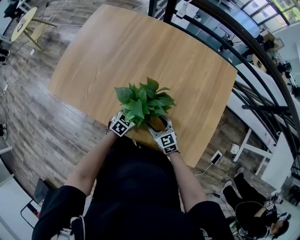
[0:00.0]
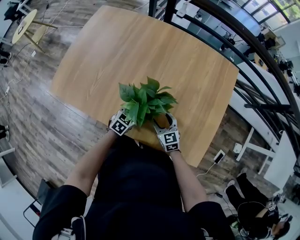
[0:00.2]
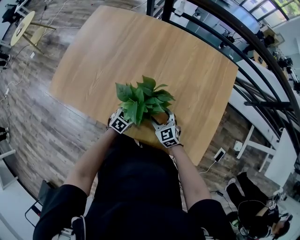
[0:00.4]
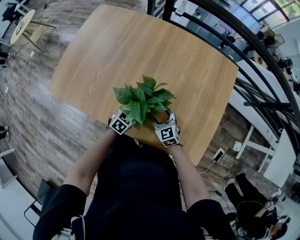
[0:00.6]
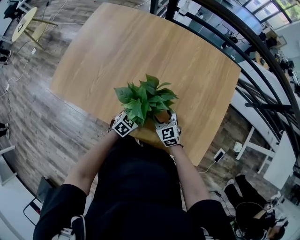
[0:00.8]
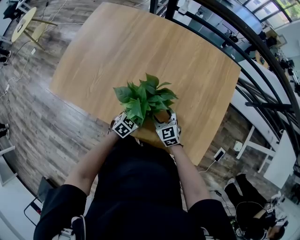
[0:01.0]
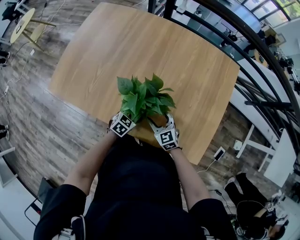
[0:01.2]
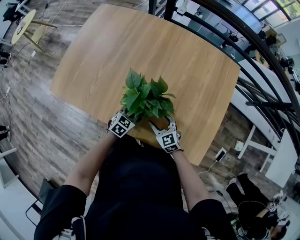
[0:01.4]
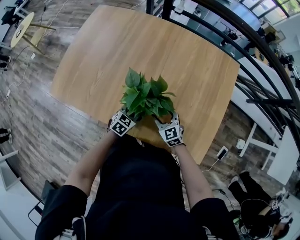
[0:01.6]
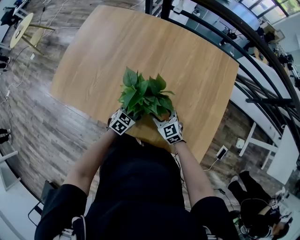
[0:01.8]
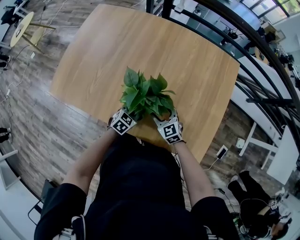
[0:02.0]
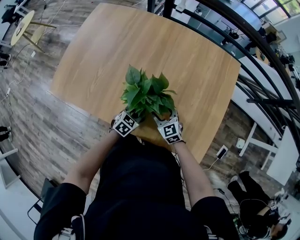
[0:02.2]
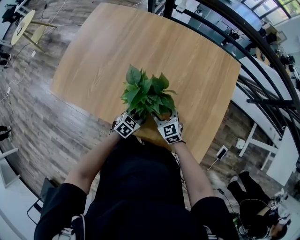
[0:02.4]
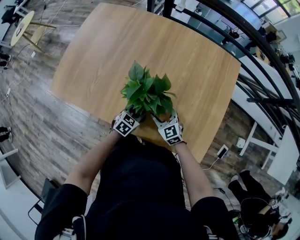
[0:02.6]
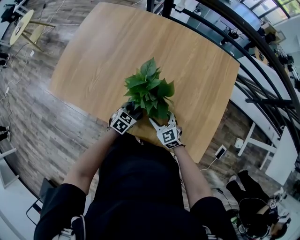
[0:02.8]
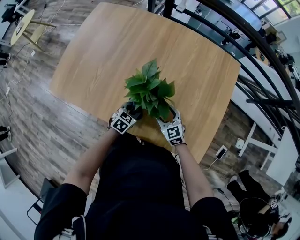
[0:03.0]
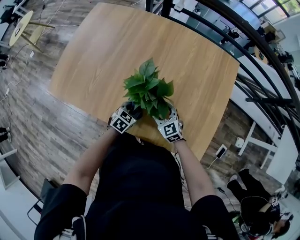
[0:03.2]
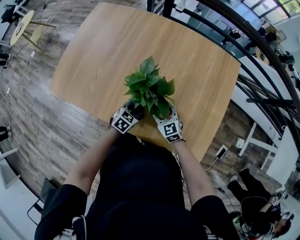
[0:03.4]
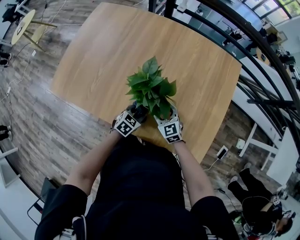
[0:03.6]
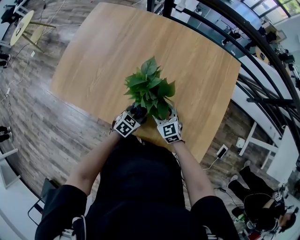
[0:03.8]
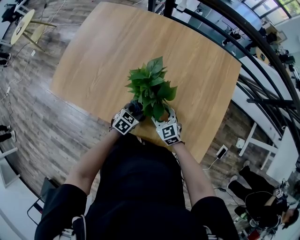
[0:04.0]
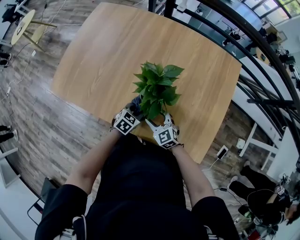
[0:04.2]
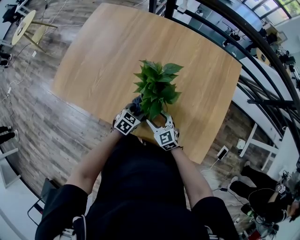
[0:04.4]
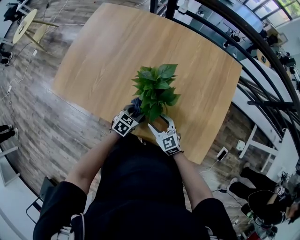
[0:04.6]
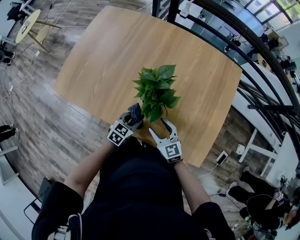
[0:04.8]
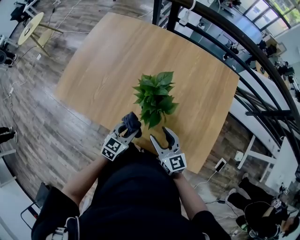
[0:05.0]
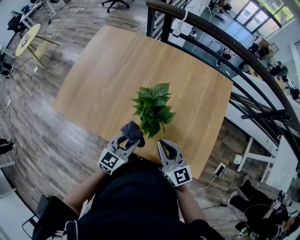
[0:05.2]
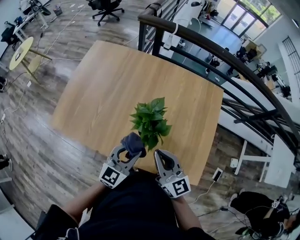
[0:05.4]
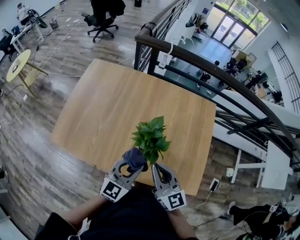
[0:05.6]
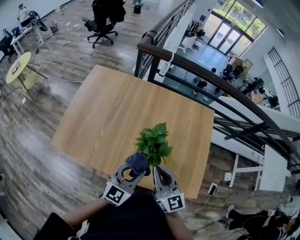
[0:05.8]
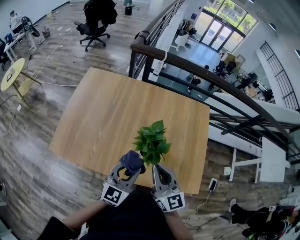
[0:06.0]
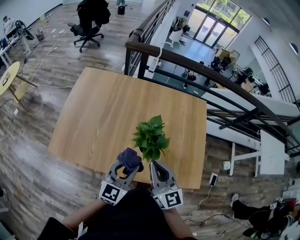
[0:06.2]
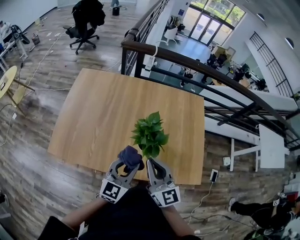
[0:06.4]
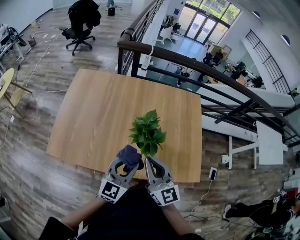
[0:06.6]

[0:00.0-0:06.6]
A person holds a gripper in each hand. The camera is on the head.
0:00.0 to 0:03.2: The grippers move only a little.
0:03.2 to 0:05.0: The grippers both shift upward and backward by roughly 10 cm. The right gripper changes its angle by roughly 30 degrees.
0:05.0 to 0:06.6: The right gripper heads upward and to the left, covering about 20 cm, swivels some 30 degrees, and closes up. The left gripper travels upward by roughly 20 cm, and turns by approximately 30 degrees.

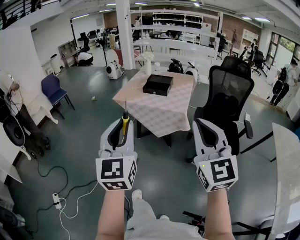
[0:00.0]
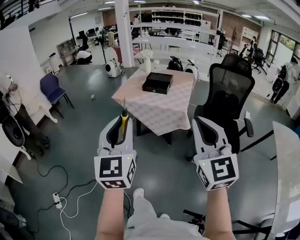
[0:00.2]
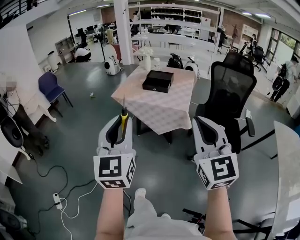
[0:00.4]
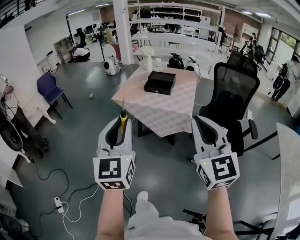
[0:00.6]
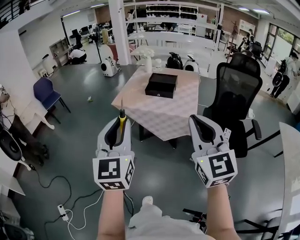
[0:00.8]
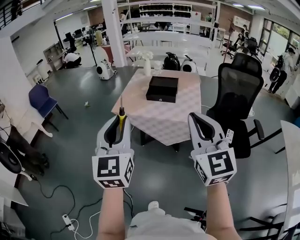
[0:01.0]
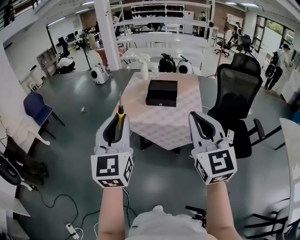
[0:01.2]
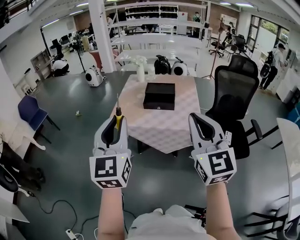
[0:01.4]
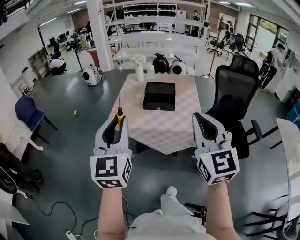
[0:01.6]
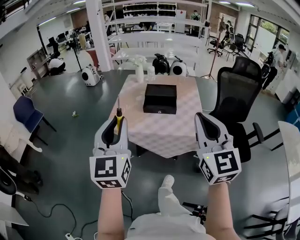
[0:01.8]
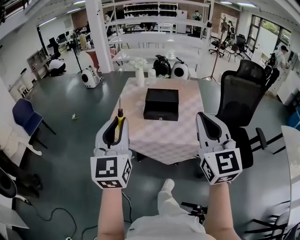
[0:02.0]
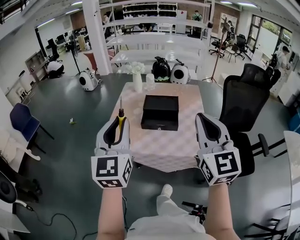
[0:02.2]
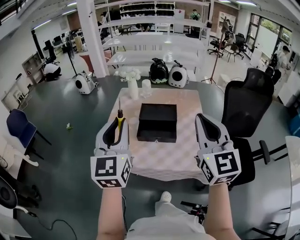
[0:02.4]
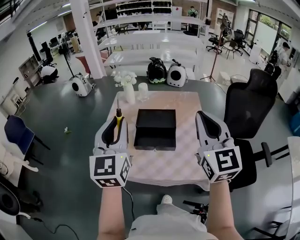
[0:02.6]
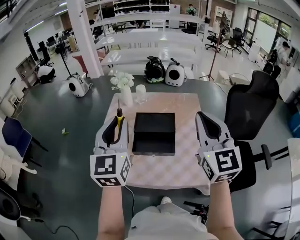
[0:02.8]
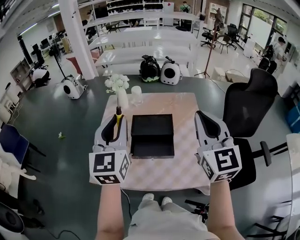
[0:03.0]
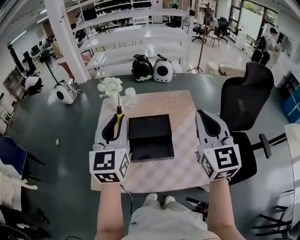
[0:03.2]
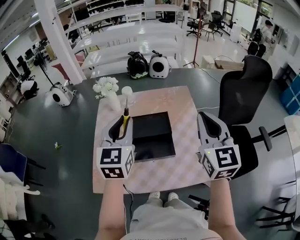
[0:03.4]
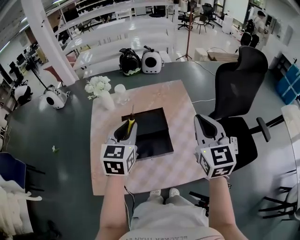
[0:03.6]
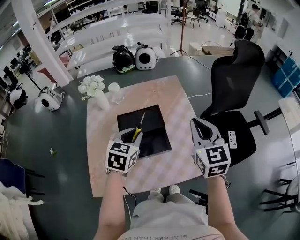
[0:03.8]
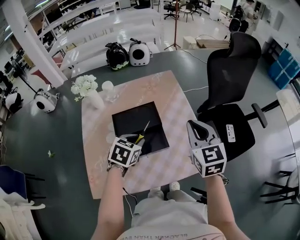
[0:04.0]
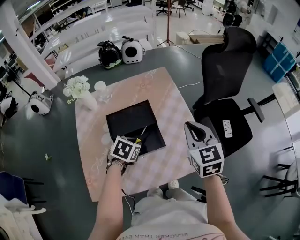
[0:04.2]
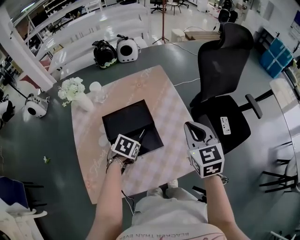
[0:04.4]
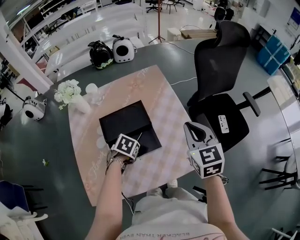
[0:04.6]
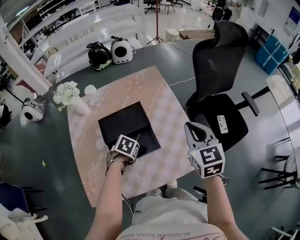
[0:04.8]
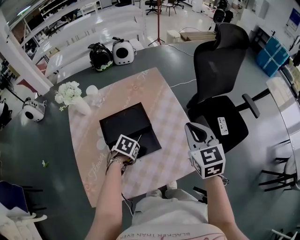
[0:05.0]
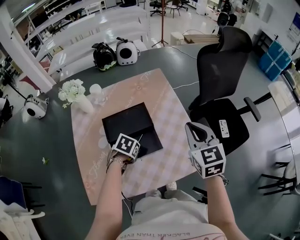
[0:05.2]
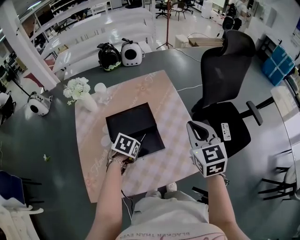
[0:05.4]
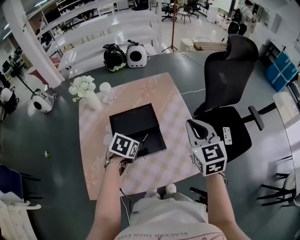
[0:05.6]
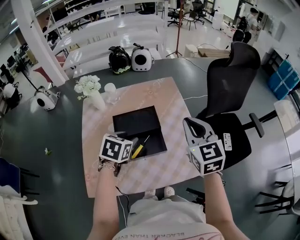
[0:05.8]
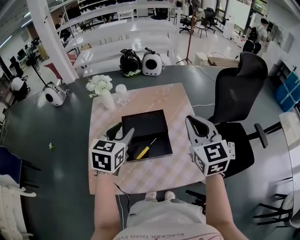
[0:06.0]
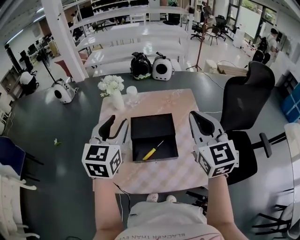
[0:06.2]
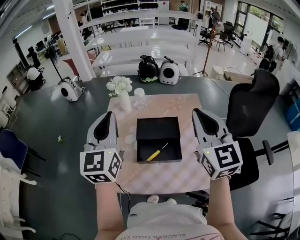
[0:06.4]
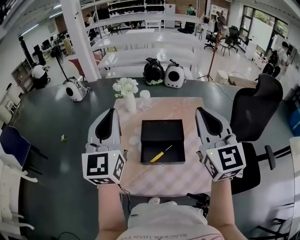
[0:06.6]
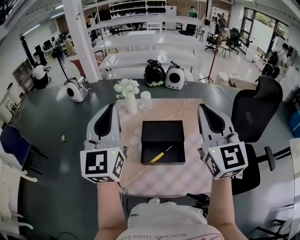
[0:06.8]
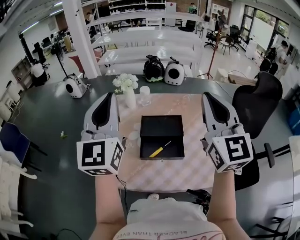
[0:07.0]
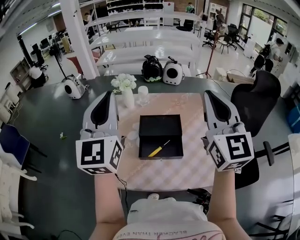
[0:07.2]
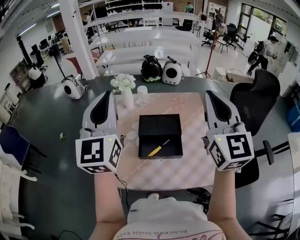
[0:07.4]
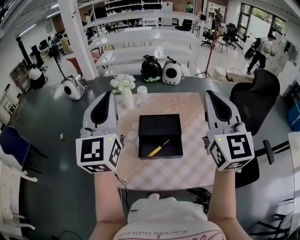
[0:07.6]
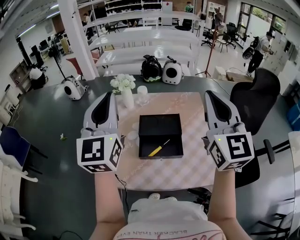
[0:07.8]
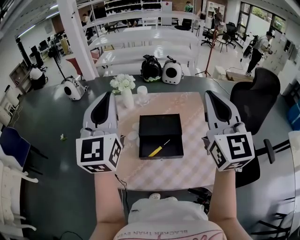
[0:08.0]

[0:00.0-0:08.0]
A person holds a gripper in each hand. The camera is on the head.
0:00.0 to 0:01.6: The two grippers go some 35 cm forward.
0:01.6 to 0:03.2: The pair of grippers is taken forward, approximately 40 cm.
0:03.2 to 0:04.8: The right gripper shifts some 20 cm downward, and rotates some 30 degrees, while the left gripper shifts approximately 40 cm downward, and angles its fingers downward, by roughly 70 degrees.
0:04.8 to 0:06.4: The left gripper travels upward by roughly 40 cm, tilts its fingers about 80 degrees upward, and opens, then closes once more. Meanwhile the right gripper shifts roughly 20 cm upward, and swivels roughly 30 degrees.
0:06.4 to 0:08.0: Both grippers travel together upward, roughly 5 cm.

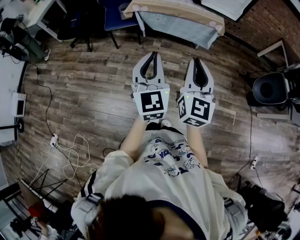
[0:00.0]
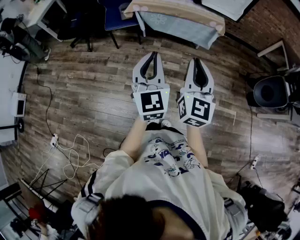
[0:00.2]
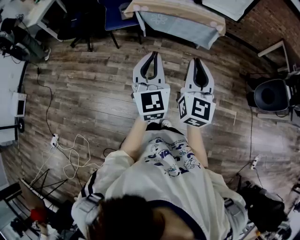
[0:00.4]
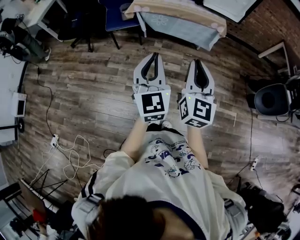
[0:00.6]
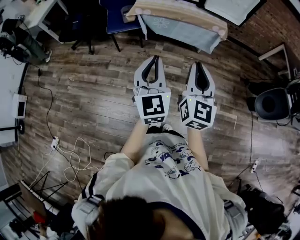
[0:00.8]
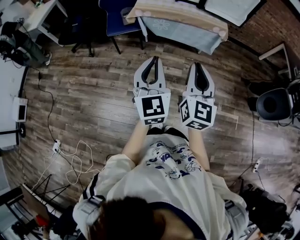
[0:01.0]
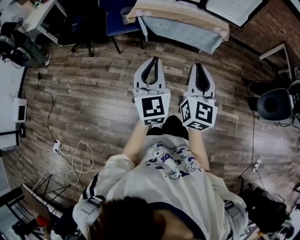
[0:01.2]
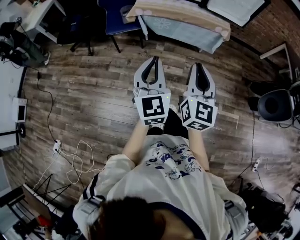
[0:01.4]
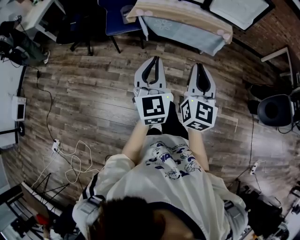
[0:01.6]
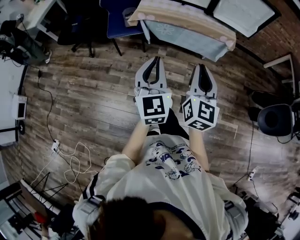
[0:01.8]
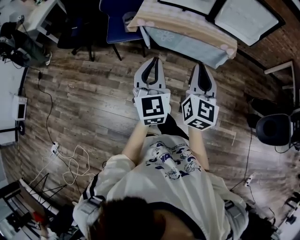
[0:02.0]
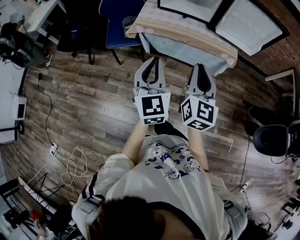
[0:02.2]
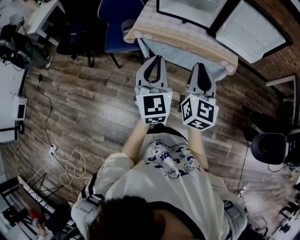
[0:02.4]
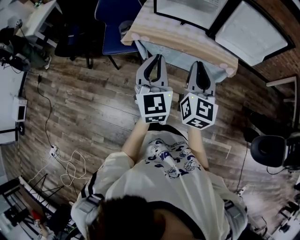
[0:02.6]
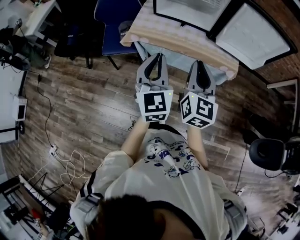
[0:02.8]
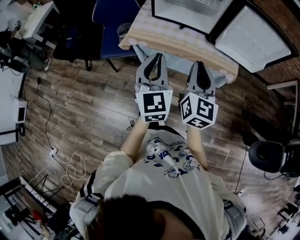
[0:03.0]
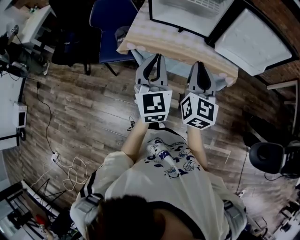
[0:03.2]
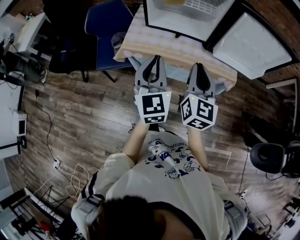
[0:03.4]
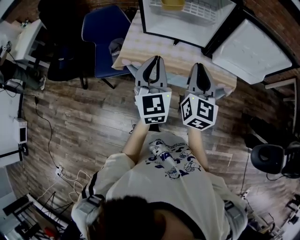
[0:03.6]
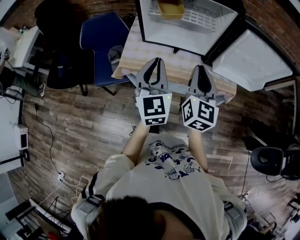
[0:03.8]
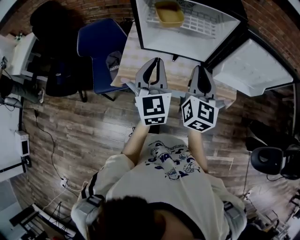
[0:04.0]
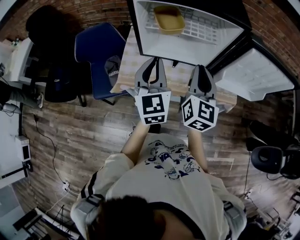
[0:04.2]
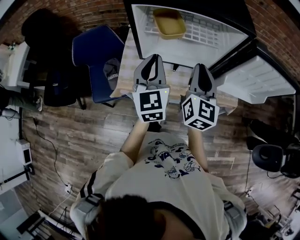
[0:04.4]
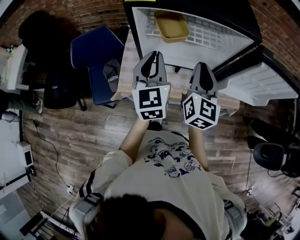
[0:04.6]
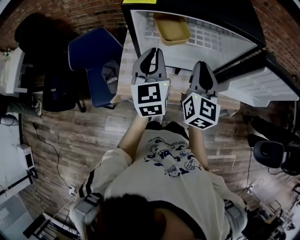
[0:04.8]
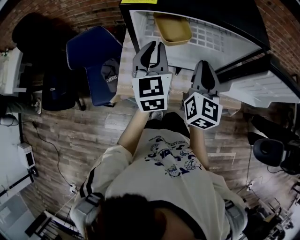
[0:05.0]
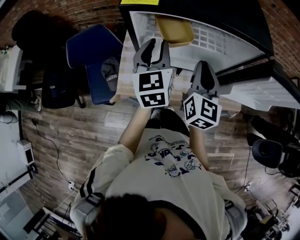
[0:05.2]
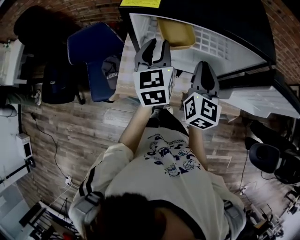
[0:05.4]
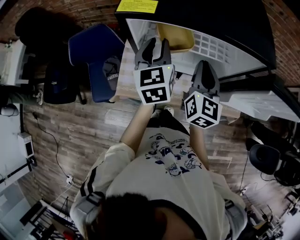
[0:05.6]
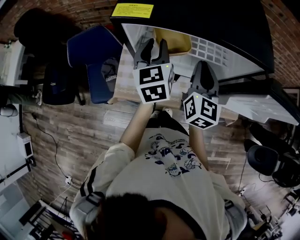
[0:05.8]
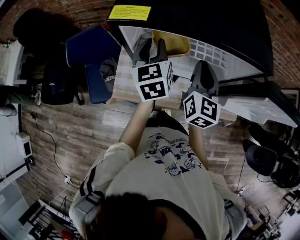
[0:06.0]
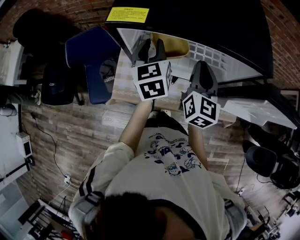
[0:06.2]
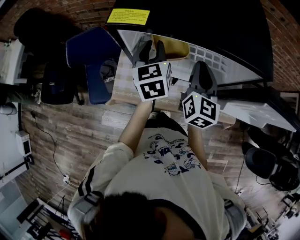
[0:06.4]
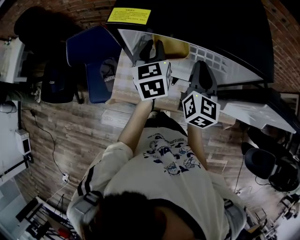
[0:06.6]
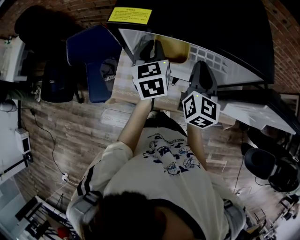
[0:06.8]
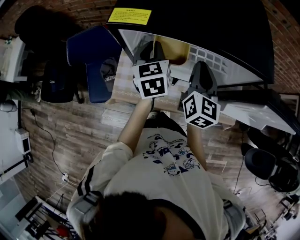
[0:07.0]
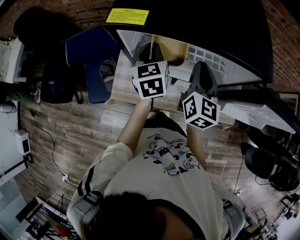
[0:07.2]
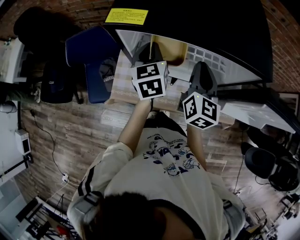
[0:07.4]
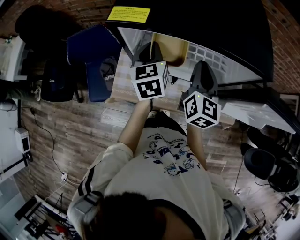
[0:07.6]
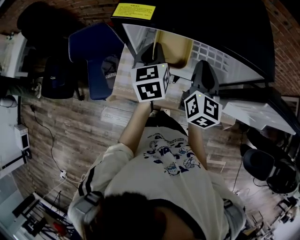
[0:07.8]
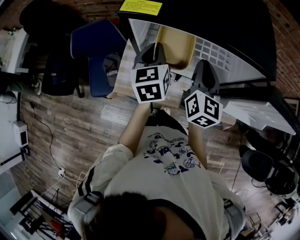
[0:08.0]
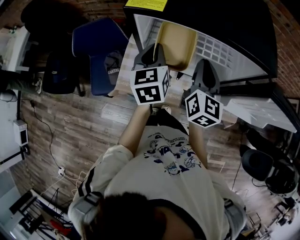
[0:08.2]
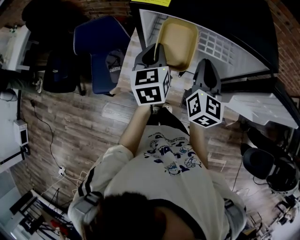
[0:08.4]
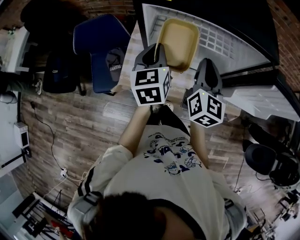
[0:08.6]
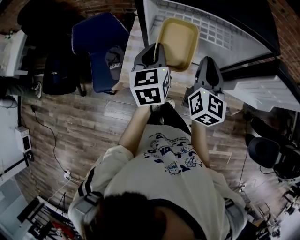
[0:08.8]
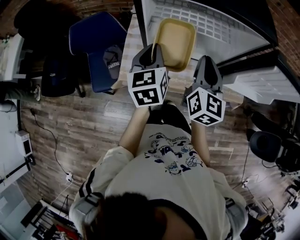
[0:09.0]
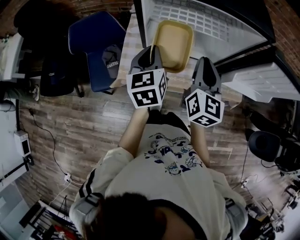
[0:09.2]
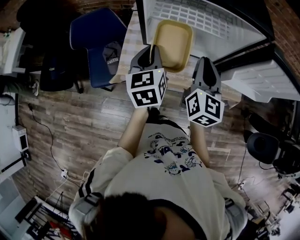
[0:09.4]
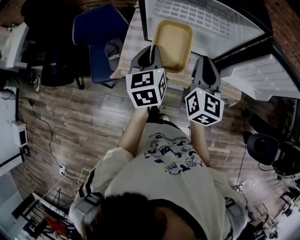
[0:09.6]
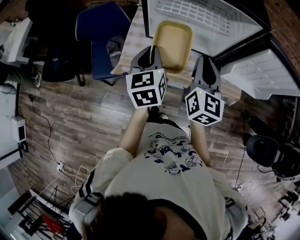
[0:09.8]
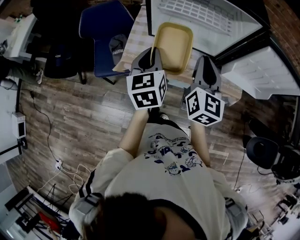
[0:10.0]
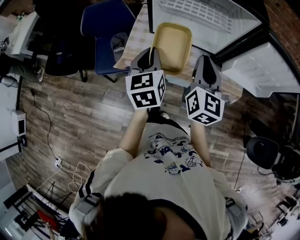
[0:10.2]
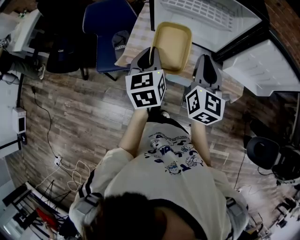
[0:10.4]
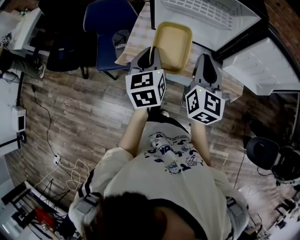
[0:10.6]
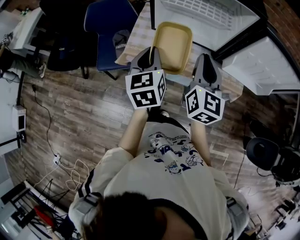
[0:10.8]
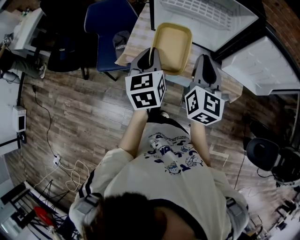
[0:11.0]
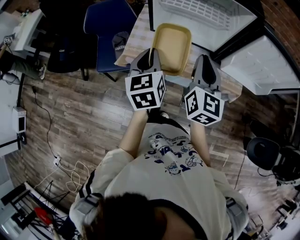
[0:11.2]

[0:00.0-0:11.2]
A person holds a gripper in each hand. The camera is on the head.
0:00.0 to 0:01.6: Both grippers travel together forward, some 10 cm.
0:01.6 to 0:03.2: The two grippers travel together, forward, about 40 cm.
0:03.2 to 0:04.8: Both grippers travel together forward, approximately 35 cm.
0:04.8 to 0:06.4: Both grippers move forward, some 10 cm. The left gripper opens.
0:06.4 to 0:08.0: The left gripper closes up.
0:08.0 to 0:09.6: Both grippers move backward, some 15 cm.
0:09.6 to 0:11.2: The two grippers go some 10 cm backward.
